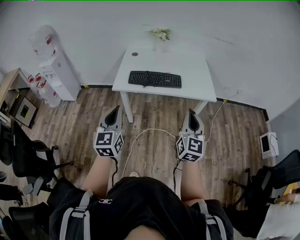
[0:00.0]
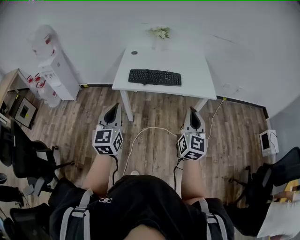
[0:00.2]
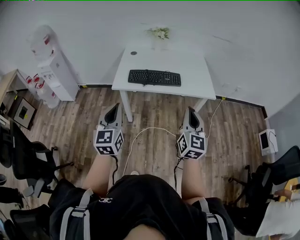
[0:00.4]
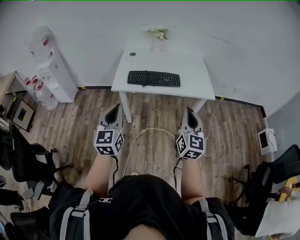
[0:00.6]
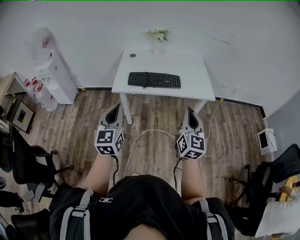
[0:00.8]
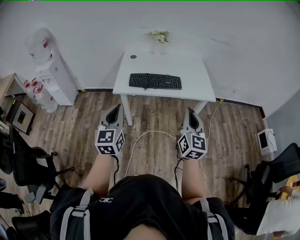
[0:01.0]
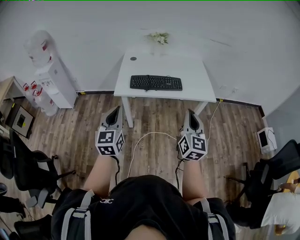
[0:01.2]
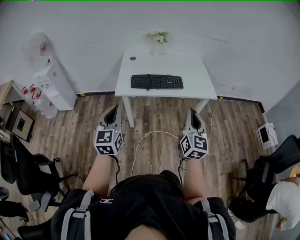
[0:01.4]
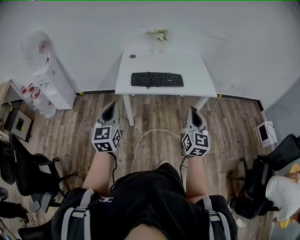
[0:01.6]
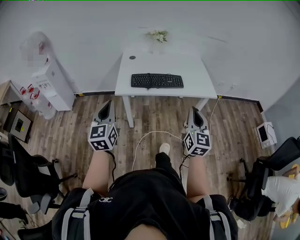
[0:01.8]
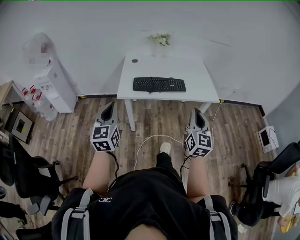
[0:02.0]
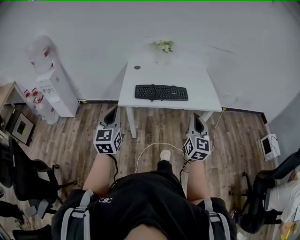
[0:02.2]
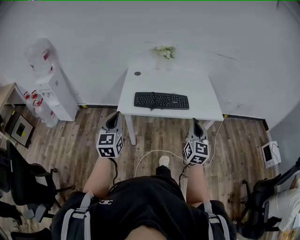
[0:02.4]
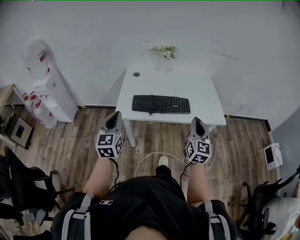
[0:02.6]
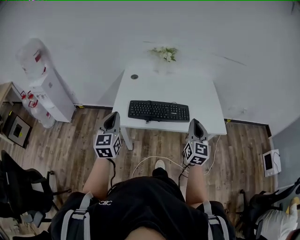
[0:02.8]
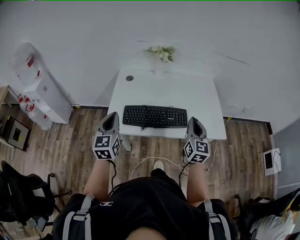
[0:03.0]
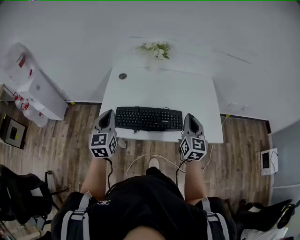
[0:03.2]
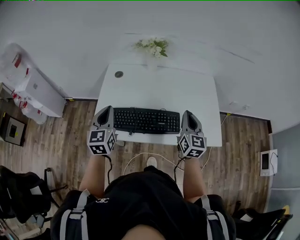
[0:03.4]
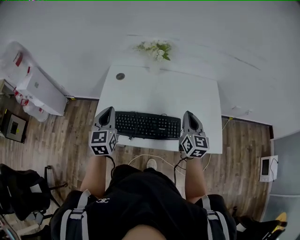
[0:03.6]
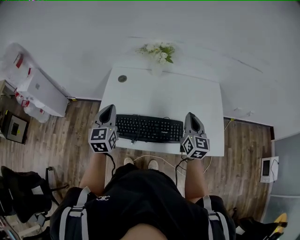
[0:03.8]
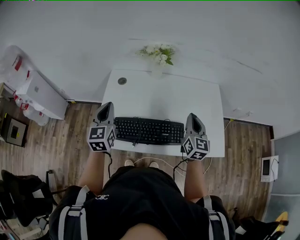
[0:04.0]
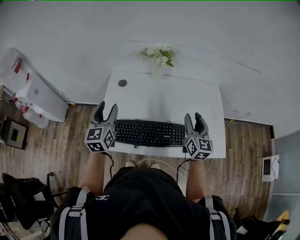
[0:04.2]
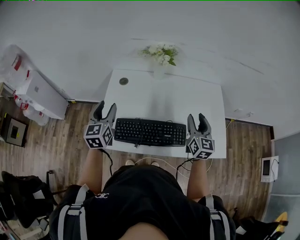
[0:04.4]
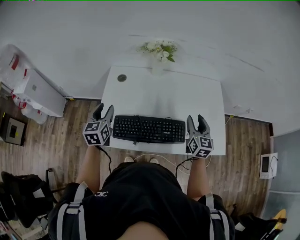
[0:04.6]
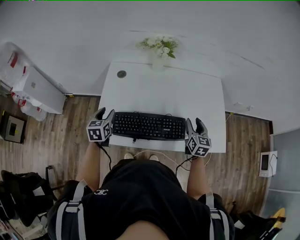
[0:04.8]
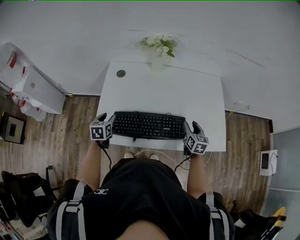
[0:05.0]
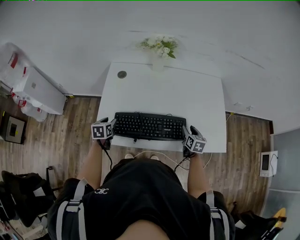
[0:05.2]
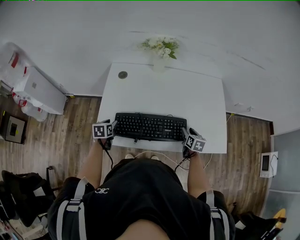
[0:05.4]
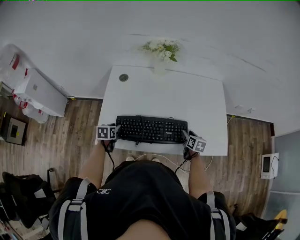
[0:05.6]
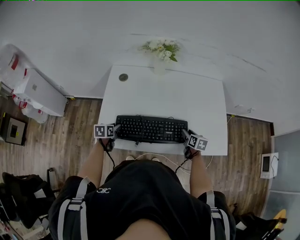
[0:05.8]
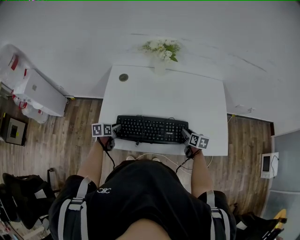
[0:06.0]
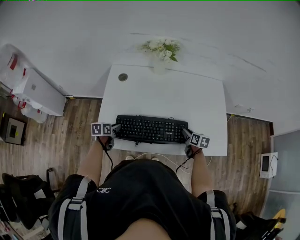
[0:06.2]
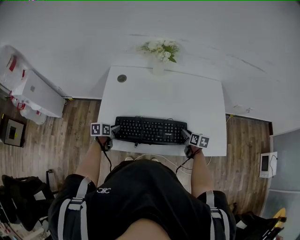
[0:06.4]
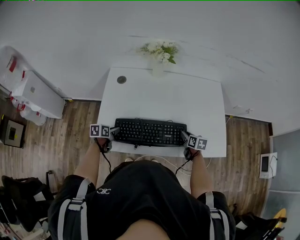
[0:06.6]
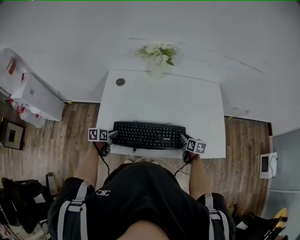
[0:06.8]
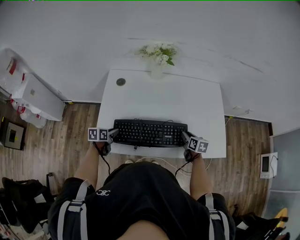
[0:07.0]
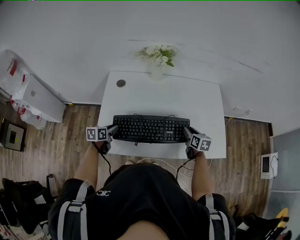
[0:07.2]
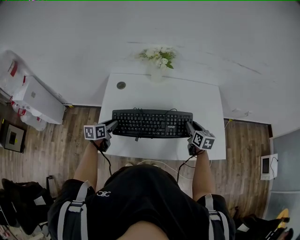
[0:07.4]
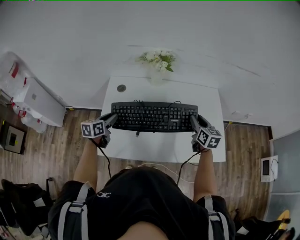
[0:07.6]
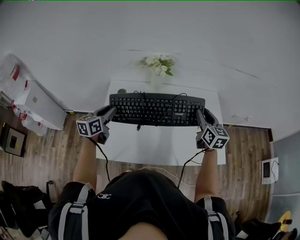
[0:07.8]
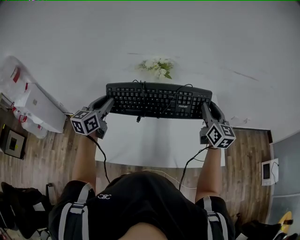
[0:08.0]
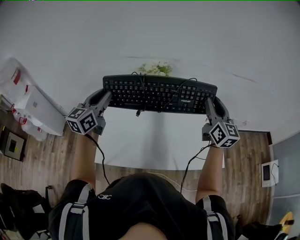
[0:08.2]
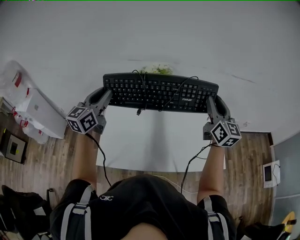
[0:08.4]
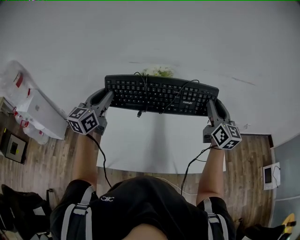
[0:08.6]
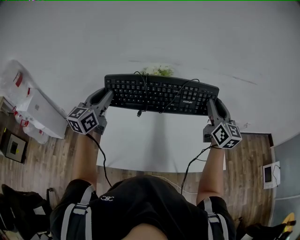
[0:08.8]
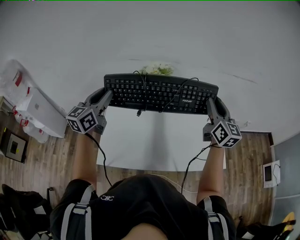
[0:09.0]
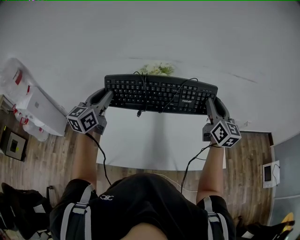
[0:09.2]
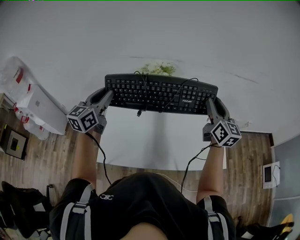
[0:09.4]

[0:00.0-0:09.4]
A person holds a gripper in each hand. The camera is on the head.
0:00.0 to 0:01.6: The two grippers go roughly 10 cm to the left.
0:01.6 to 0:03.2: The two grippers travel together, forward, approximately 40 cm.
0:03.2 to 0:04.8: Both grippers travel together downward and forward, some 20 cm. The left gripper rotates roughly 20 degrees, and opens its fingers; the right gripper opens its fingers.
0:04.8 to 0:06.2: The two grippers go approximately 15 cm downward. The left gripper turns by some 40 degrees. Meanwhile the right gripper changes its angle by roughly 30 degrees.
0:06.2 to 0:07.8: Both grippers move upward, approximately 25 cm. The right gripper tips its fingers upward by some 30 degrees. The left gripper swivels some 40 degrees.
0:07.8 to 0:09.4: Both grippers move upward, about 15 cm. The left gripper rotates approximately 20 degrees.

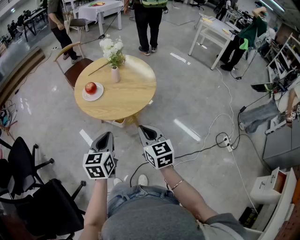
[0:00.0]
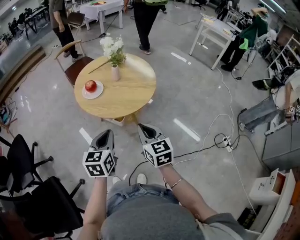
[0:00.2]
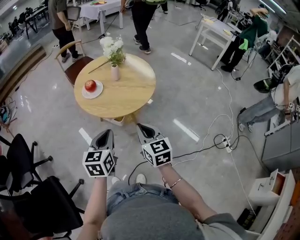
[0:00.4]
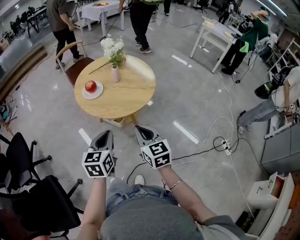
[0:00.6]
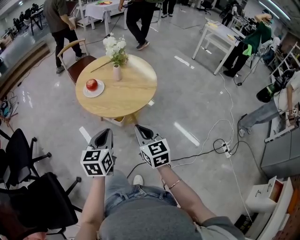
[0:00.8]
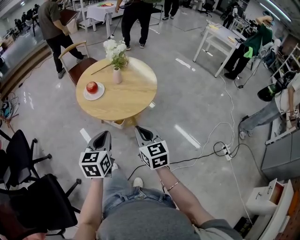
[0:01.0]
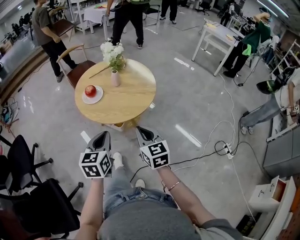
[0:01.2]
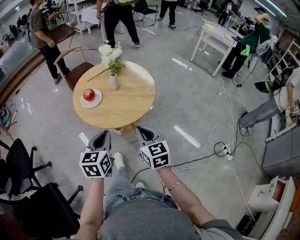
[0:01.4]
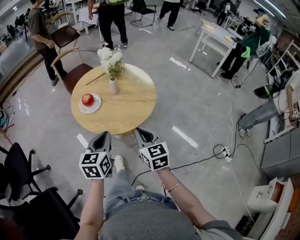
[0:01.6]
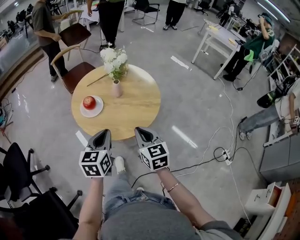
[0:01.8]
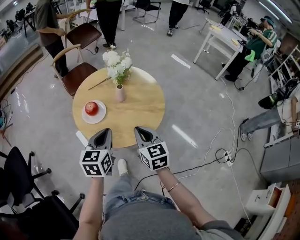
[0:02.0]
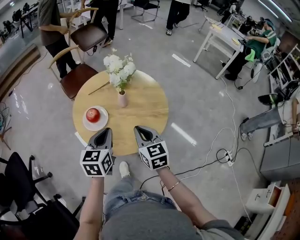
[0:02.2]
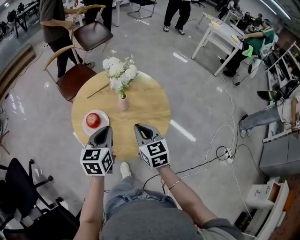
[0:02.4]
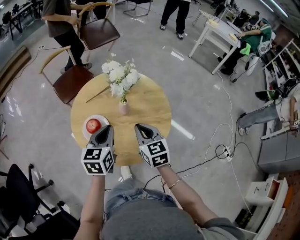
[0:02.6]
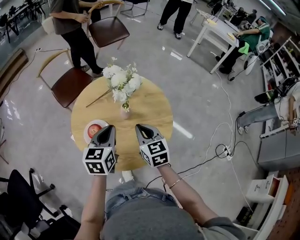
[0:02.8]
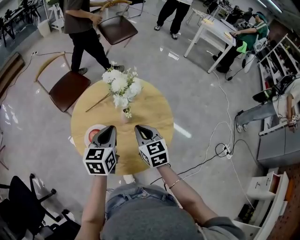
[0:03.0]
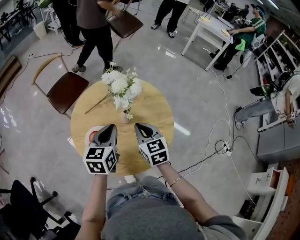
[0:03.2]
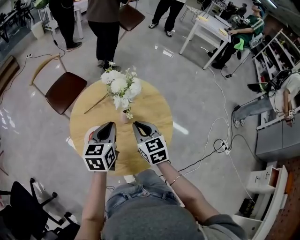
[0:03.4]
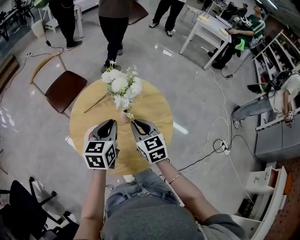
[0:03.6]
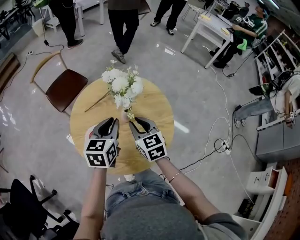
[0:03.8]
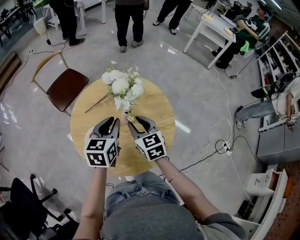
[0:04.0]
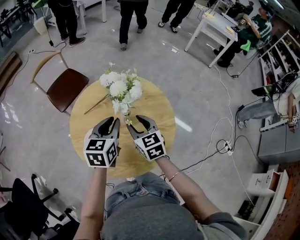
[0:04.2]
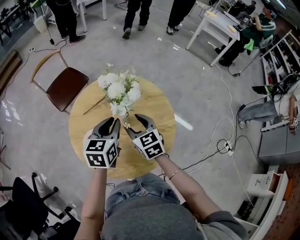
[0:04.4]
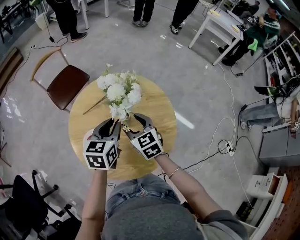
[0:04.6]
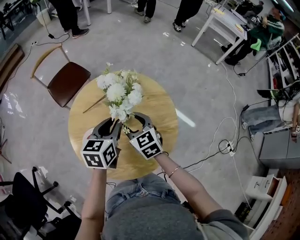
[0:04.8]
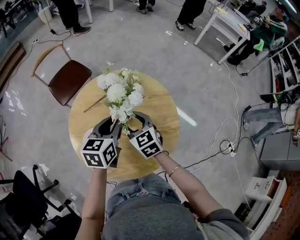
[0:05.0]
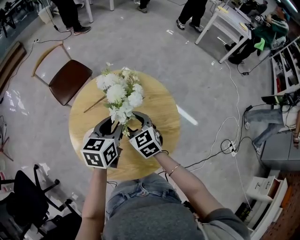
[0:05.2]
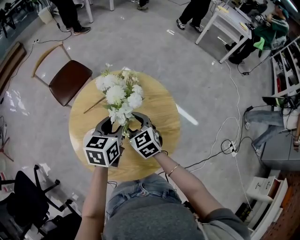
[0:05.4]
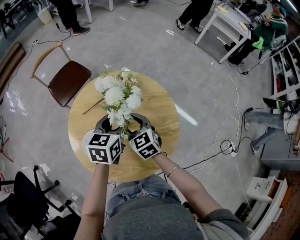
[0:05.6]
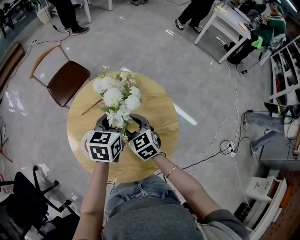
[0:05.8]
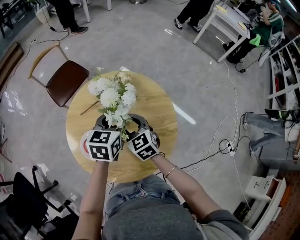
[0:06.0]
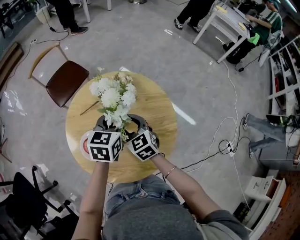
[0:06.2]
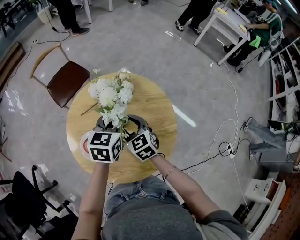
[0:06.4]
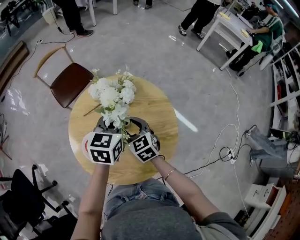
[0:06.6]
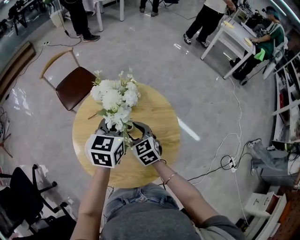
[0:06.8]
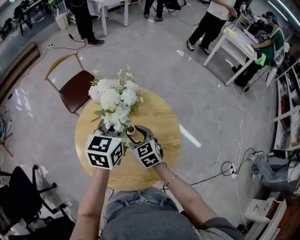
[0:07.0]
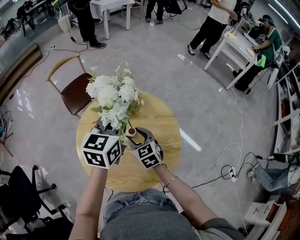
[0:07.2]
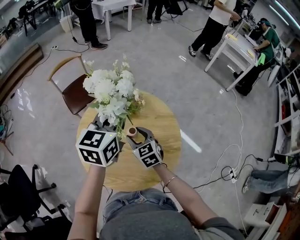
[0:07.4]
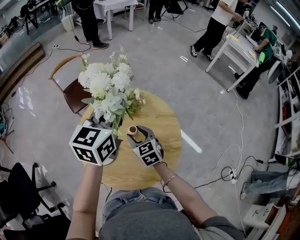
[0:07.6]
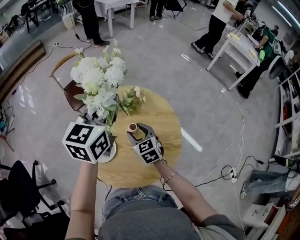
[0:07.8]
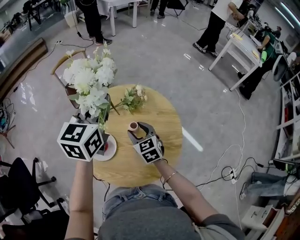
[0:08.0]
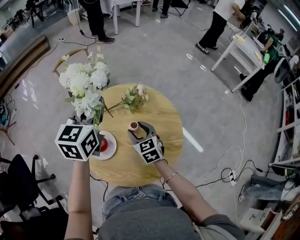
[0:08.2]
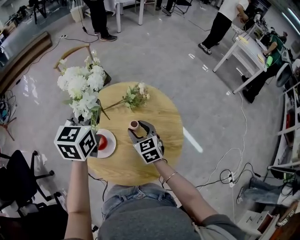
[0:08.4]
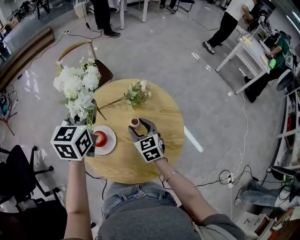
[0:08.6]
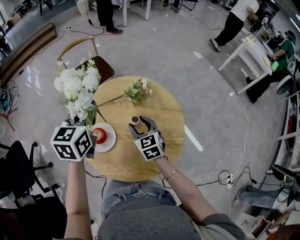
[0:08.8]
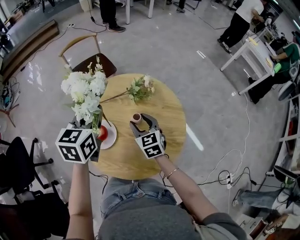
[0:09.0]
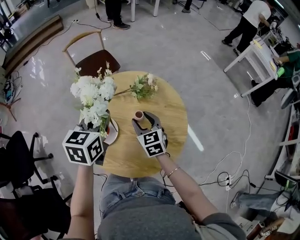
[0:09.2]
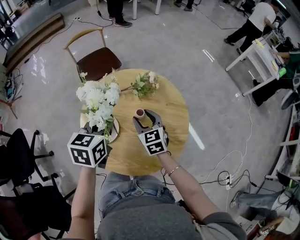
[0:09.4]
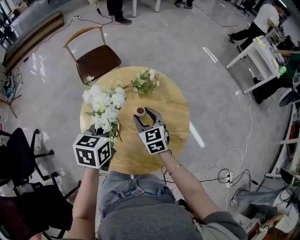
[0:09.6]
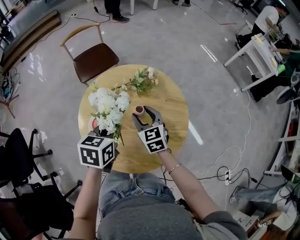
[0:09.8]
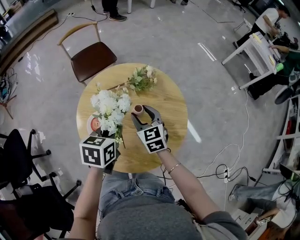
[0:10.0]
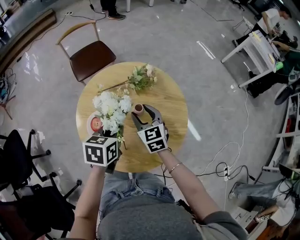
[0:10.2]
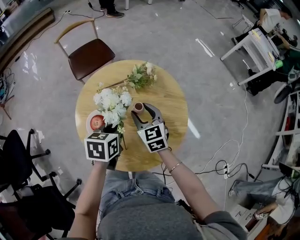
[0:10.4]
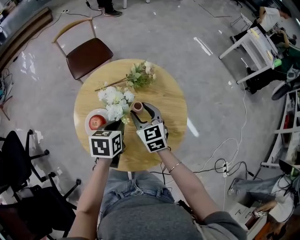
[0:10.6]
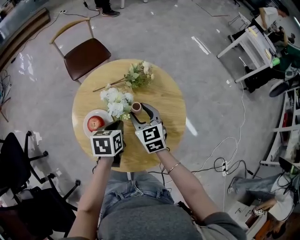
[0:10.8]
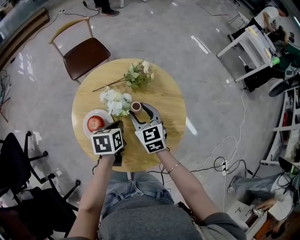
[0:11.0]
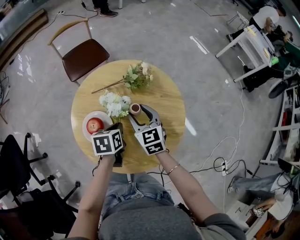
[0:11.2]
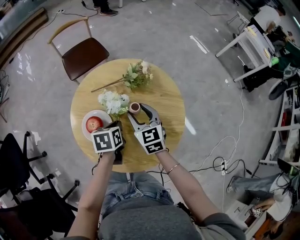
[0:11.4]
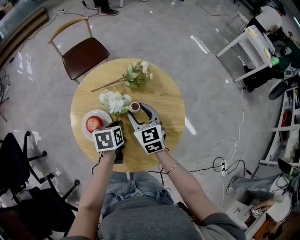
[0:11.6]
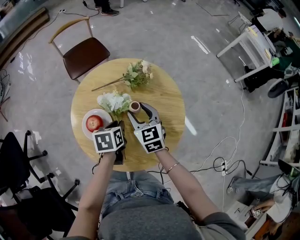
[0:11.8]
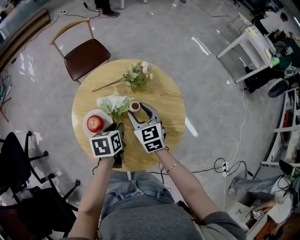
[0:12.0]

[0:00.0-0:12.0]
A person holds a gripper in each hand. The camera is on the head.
0:00.0 to 0:01.6: Both grippers travel together forward, roughly 10 cm.
0:01.6 to 0:03.0: Both grippers travel together forward, approximately 25 cm.
0:03.0 to 0:04.4: Both grippers move forward, roughly 5 cm. The right gripper opens.
0:04.4 to 0:06.0: The left gripper shifts about 5 cm forward.
0:06.0 to 0:07.6: The left gripper moves upward, some 15 cm, changes its angle by some 20 degrees, and closes up.
0:07.6 to 0:09.0: The left gripper goes some 15 cm to the left and downward, and swivels approximately 20 degrees.
0:09.0 to 0:10.4: The left gripper goes about 15 cm downward and backward, and changes its angle by about 30 degrees.
0:10.4 to 0:12.0: The left gripper heads downward, covering approximately 5 cm.

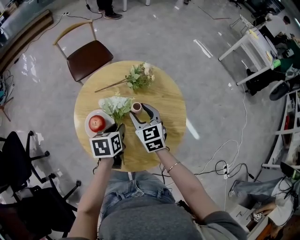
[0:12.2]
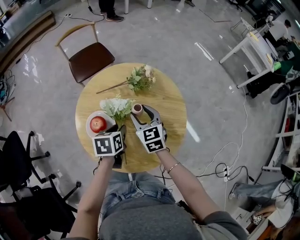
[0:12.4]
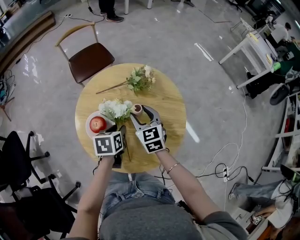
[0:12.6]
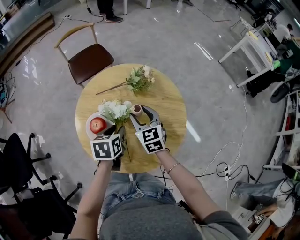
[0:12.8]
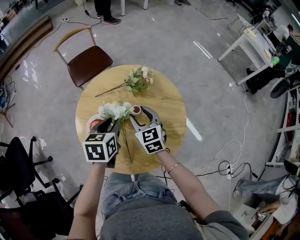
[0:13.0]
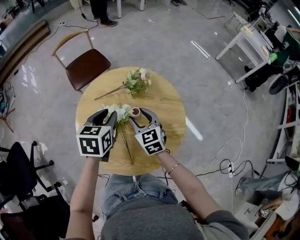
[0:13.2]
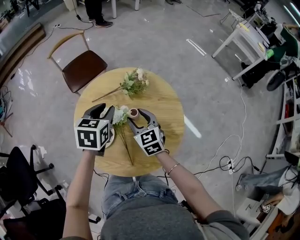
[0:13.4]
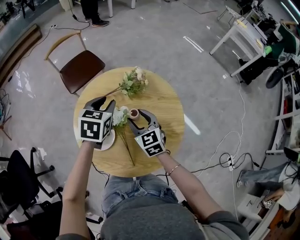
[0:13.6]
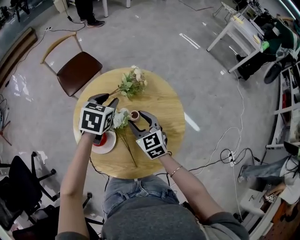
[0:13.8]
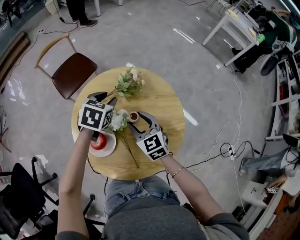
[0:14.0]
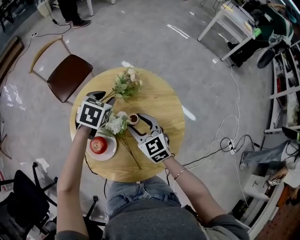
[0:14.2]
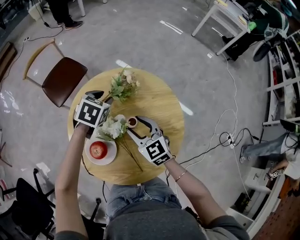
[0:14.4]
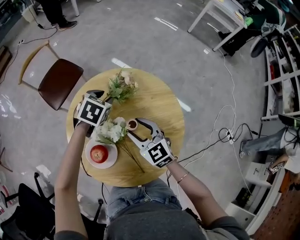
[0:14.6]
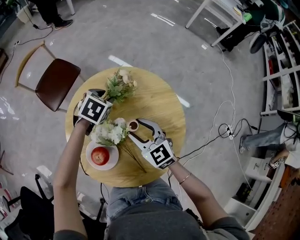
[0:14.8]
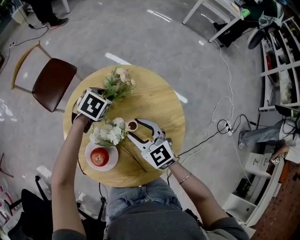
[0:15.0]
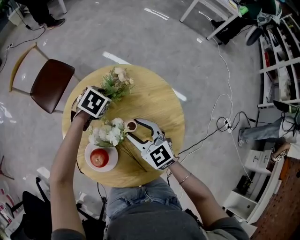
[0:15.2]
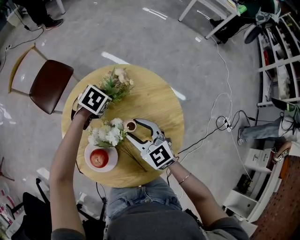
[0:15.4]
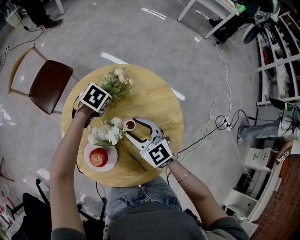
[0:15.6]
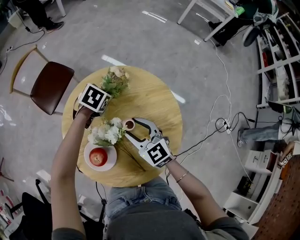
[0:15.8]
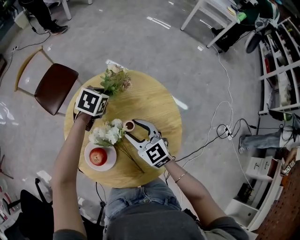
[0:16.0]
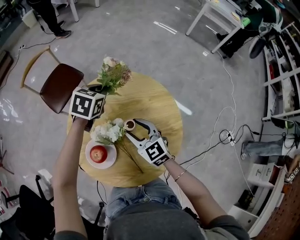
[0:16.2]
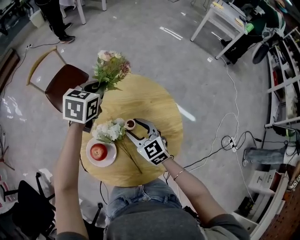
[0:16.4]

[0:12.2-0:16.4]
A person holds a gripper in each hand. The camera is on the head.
0:12.2 to 0:13.6: The left gripper is displaced forward and upward by roughly 15 cm, and swivels about 30 degrees.
0:13.6 to 0:15.0: The left gripper travels downward and forward by roughly 15 cm, and swivels roughly 40 degrees.
0:15.0 to 0:16.4: The left gripper goes some 15 cm upward, changes its angle by approximately 30 degrees, and closes up.
